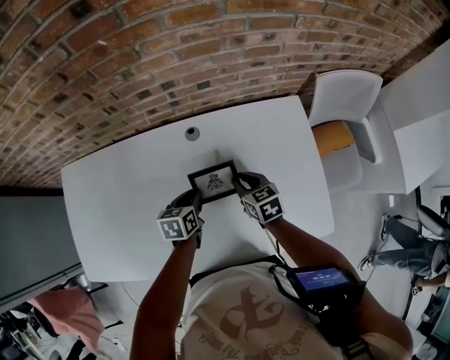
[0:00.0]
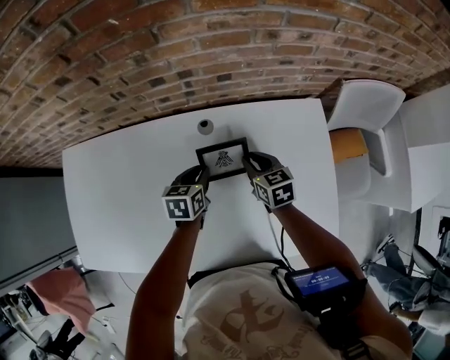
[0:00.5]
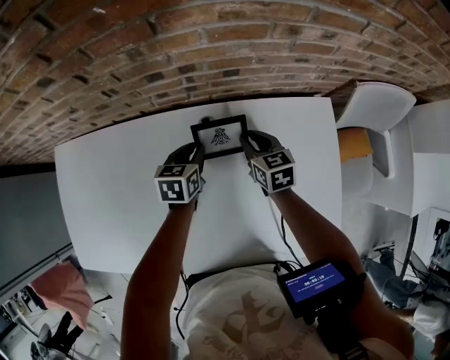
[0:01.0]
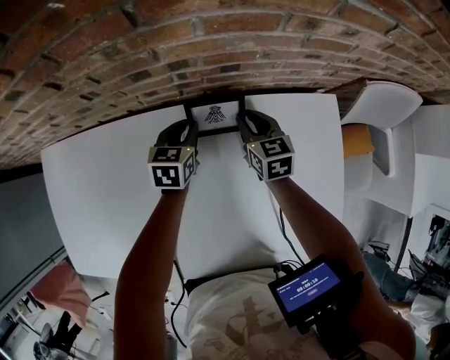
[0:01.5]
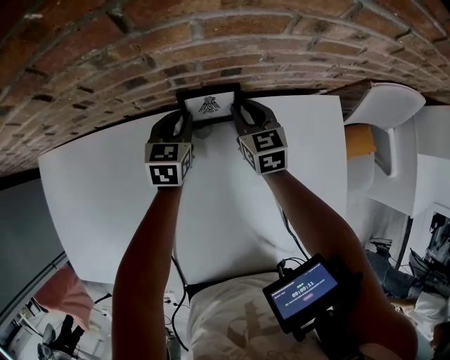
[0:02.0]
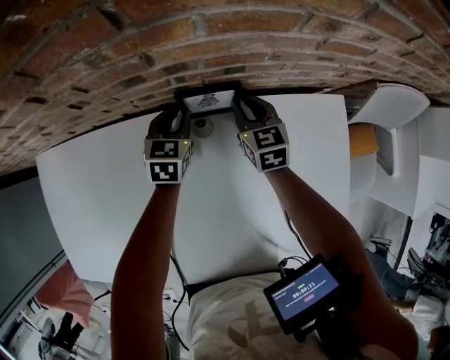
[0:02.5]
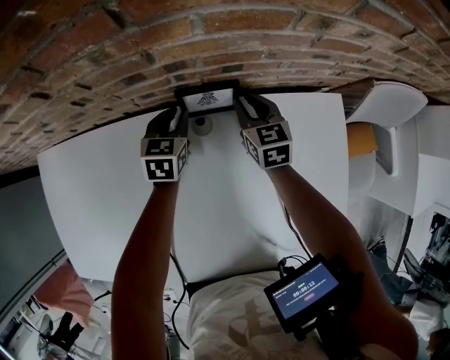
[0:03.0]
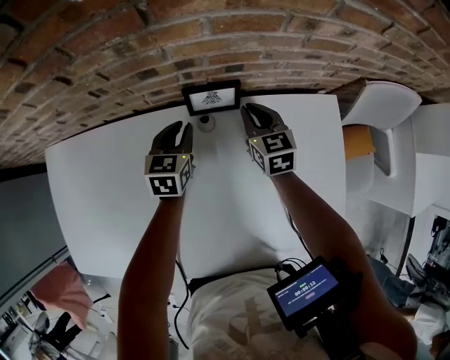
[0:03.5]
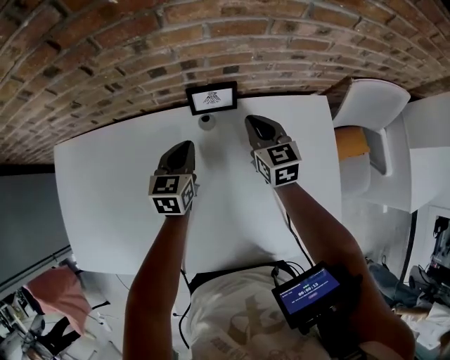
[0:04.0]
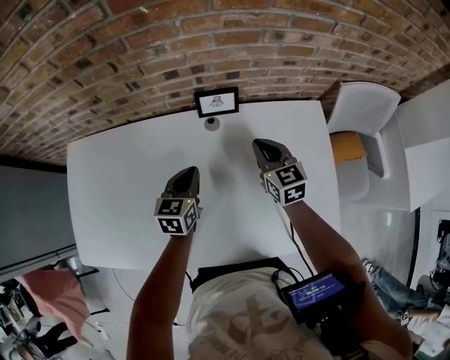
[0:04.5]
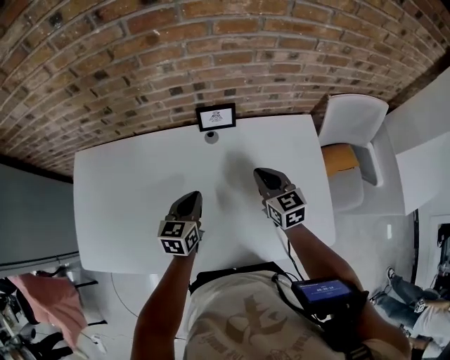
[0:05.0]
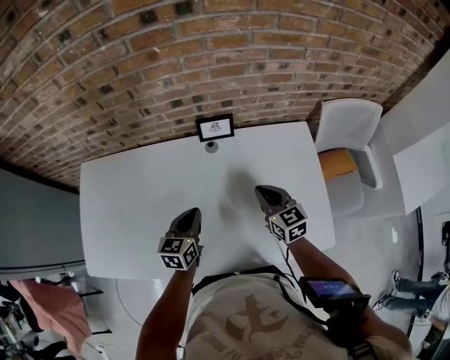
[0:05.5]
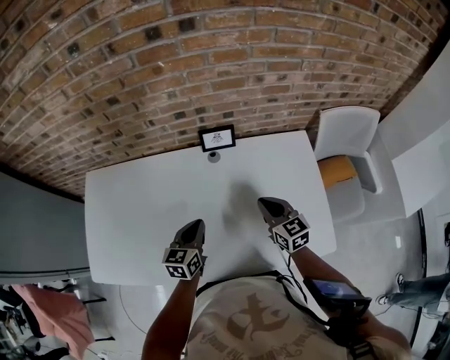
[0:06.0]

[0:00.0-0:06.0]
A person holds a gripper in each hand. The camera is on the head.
0:00.0 to 0:02.0: Both grippers travel together forward, some 25 cm. The left gripper turns by roughly 20 degrees.
0:02.0 to 0:04.0: Both grippers move backward and upward, about 15 cm.
0:04.0 to 0:06.0: Both grippers move backward, roughly 20 cm.

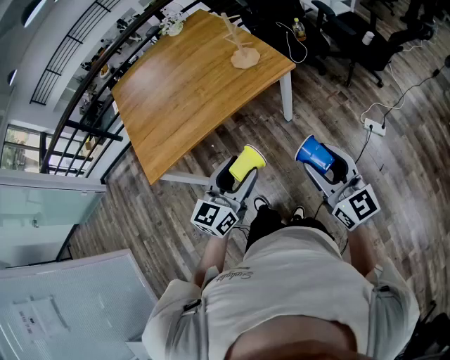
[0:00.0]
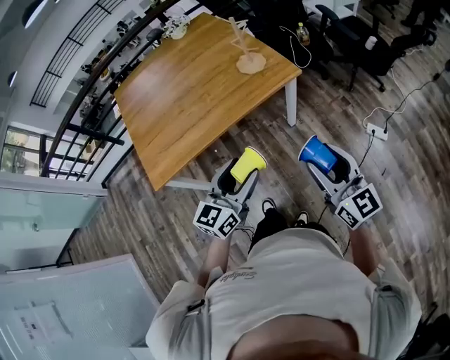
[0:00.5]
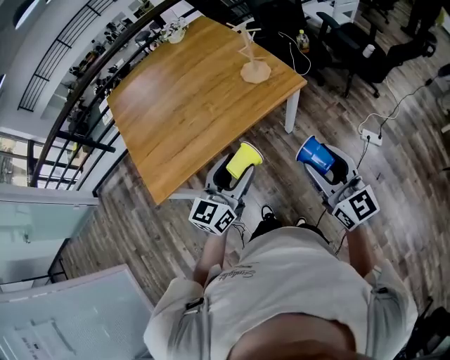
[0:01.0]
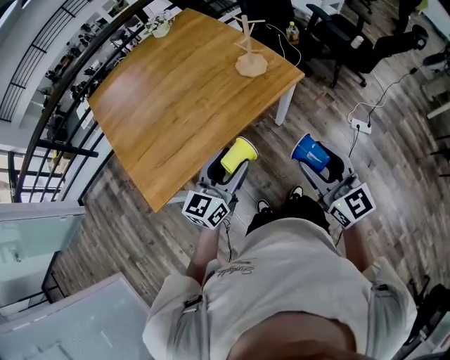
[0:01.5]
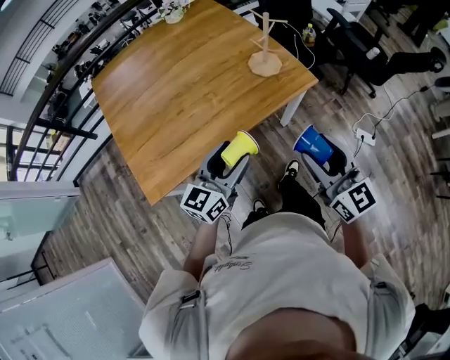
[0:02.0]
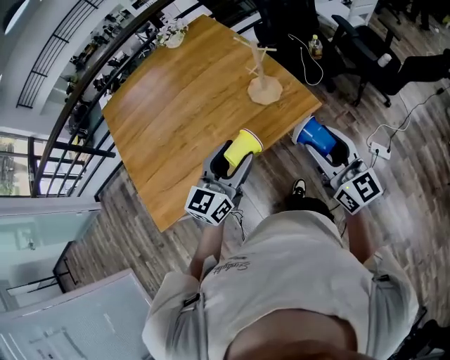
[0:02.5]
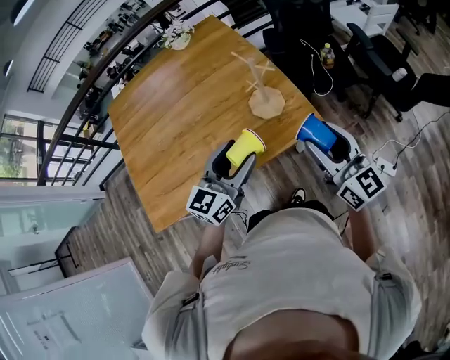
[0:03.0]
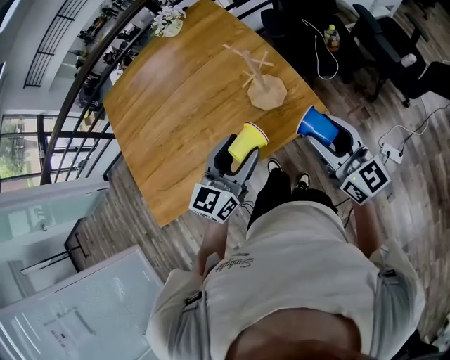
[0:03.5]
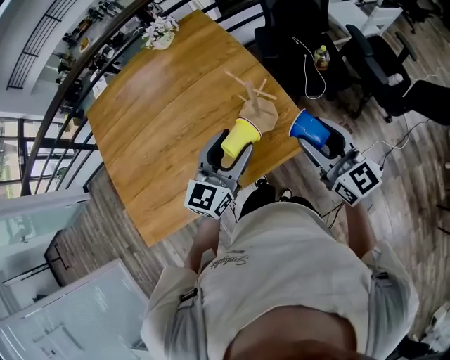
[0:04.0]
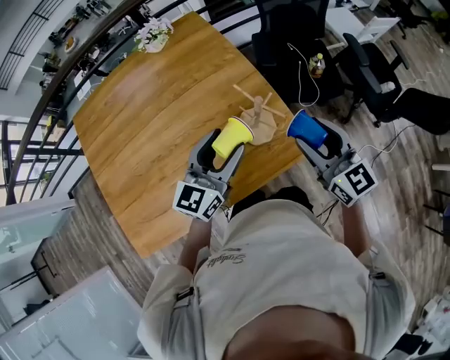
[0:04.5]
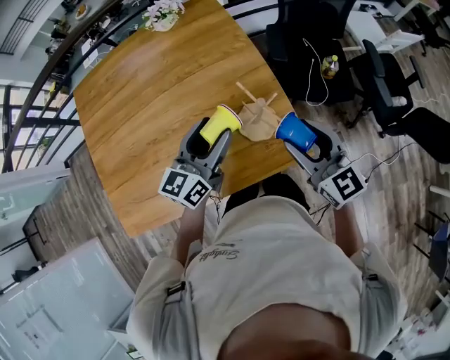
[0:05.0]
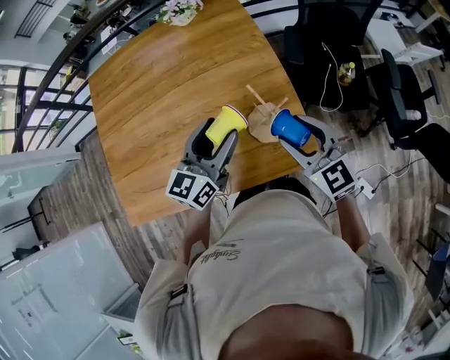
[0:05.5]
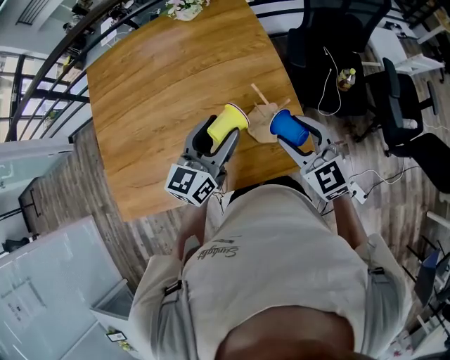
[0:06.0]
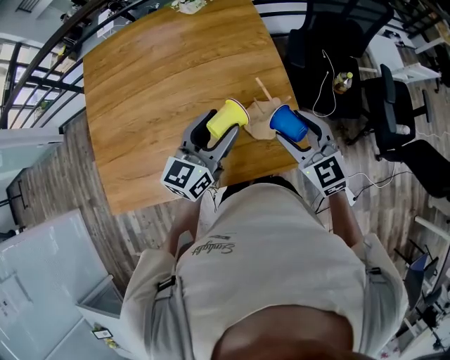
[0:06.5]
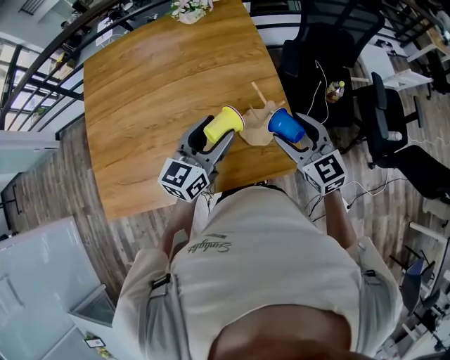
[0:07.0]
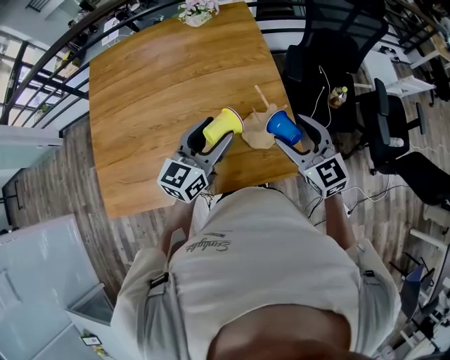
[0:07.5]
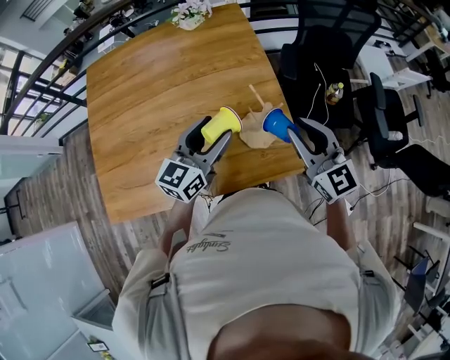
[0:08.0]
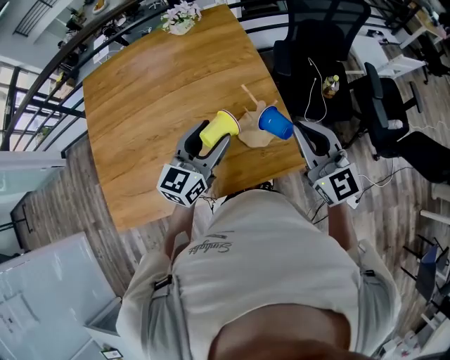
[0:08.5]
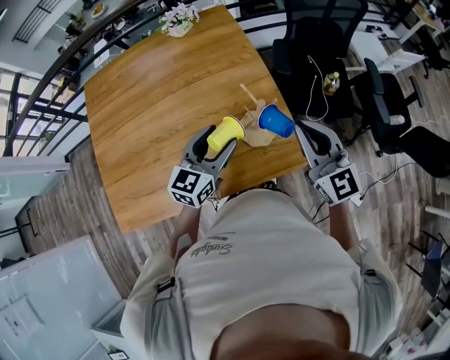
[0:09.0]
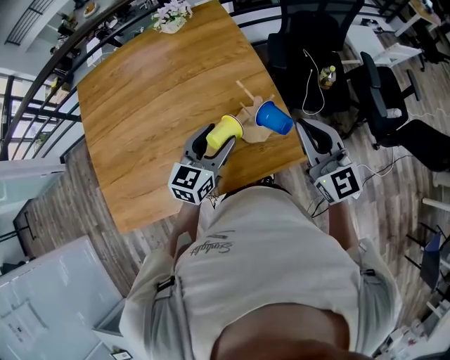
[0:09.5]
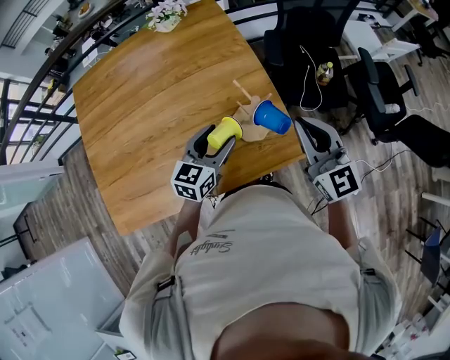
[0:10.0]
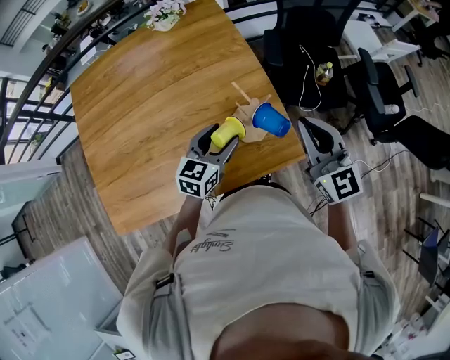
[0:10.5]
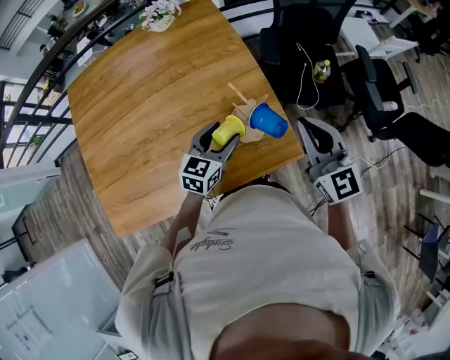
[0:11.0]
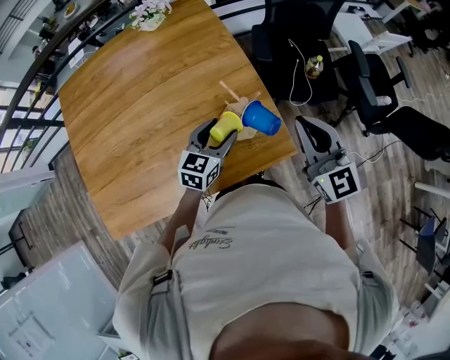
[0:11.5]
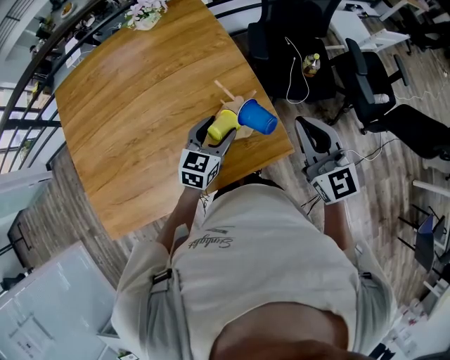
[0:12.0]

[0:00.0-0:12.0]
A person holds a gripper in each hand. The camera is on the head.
0:00.0 to 0:02.0: Both grippers travel together forward and to the left, approximately 25 cm.
0:02.0 to 0:04.0: The grippers both shift forward and to the right by approximately 35 cm.
0:04.0 to 0:06.0: The left gripper travels forward by about 10 cm. The right gripper is displaced forward, downward and to the left by about 15 cm, and turns by roughly 30 degrees.
0:06.0 to 0:08.0: The right gripper shifts approximately 5 cm upward, and closes its fingers.
0:08.0 to 0:10.0: The left gripper shifts roughly 10 cm downward.
0:10.0 to 0:12.0: The left gripper shifts by roughly 5 cm.

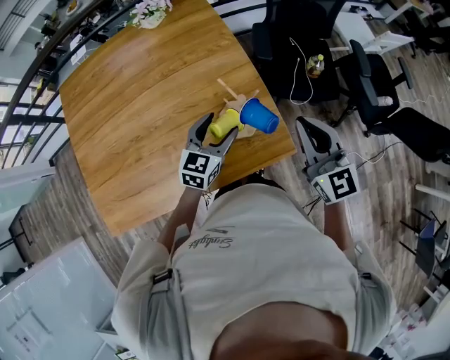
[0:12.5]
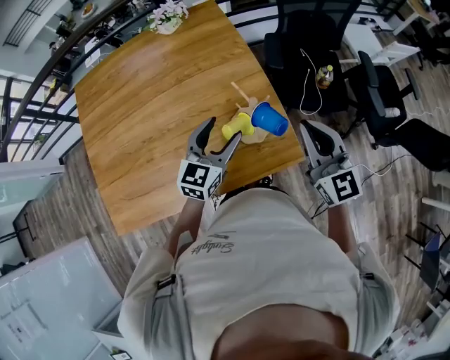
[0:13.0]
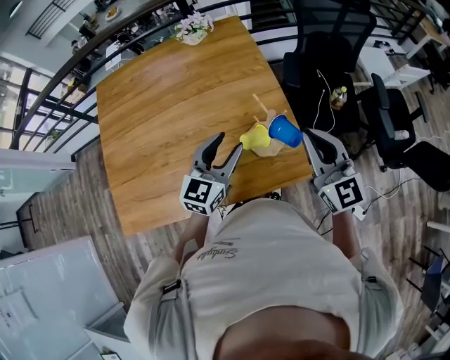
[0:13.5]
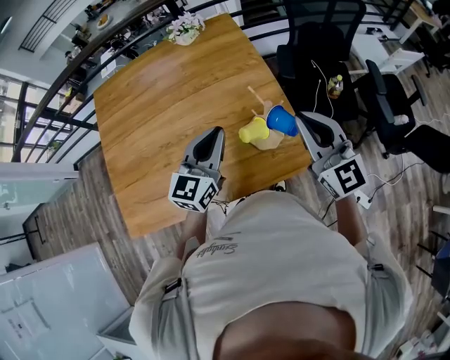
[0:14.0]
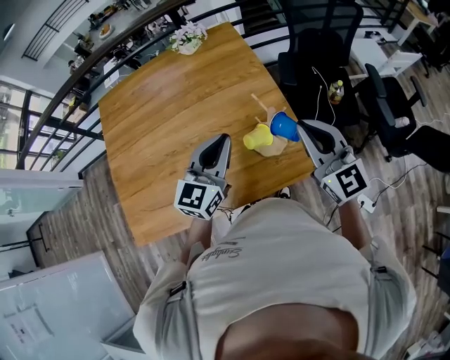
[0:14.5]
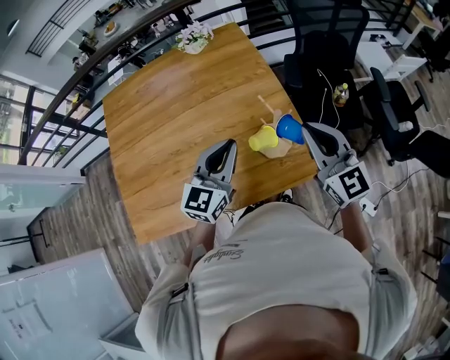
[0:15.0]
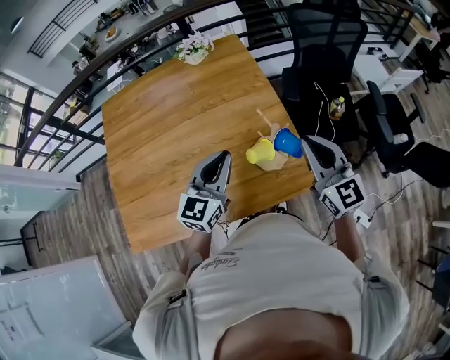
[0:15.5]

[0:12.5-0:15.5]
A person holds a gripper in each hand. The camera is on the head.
0:12.5 to 0:14.0: The right gripper goes roughly 10 cm to the left and upward; the left gripper heads upward and to the left, covering about 15 cm, and closes up.
0:14.0 to 0:15.5: The grippers move only a little.

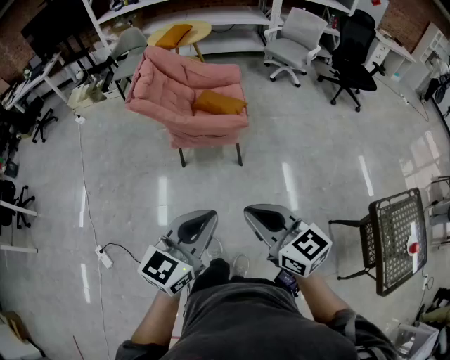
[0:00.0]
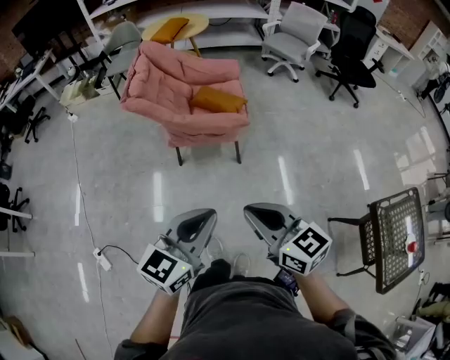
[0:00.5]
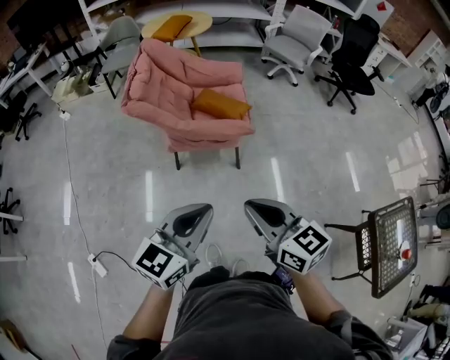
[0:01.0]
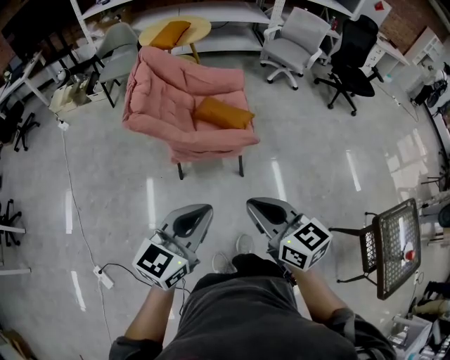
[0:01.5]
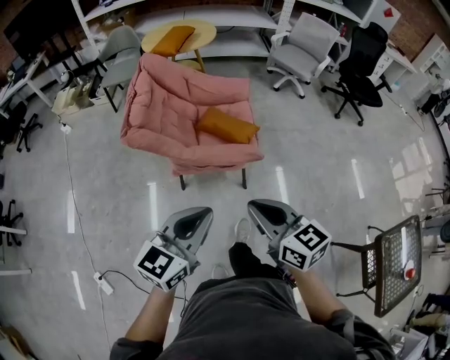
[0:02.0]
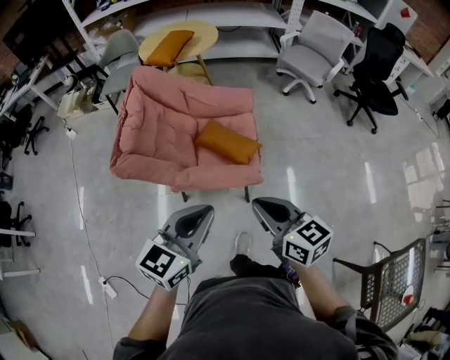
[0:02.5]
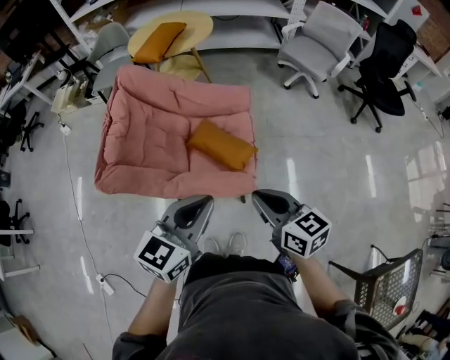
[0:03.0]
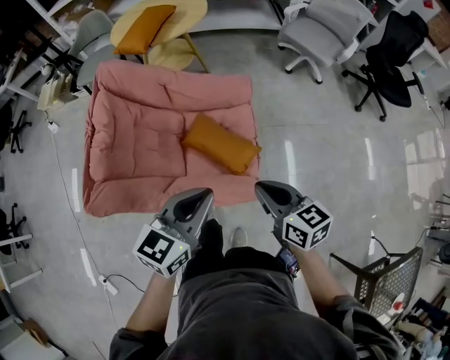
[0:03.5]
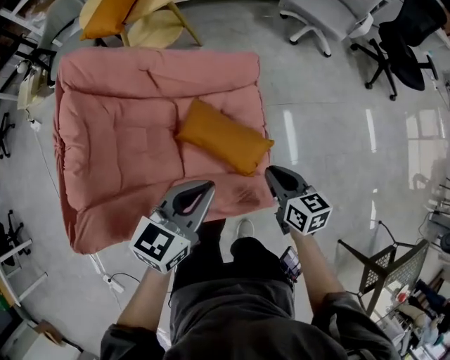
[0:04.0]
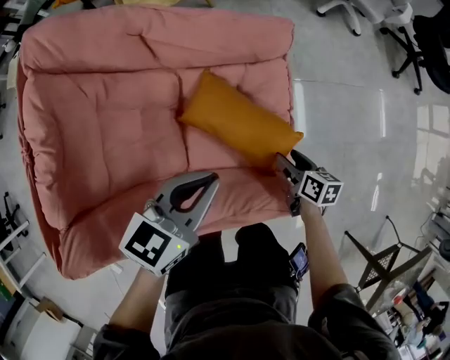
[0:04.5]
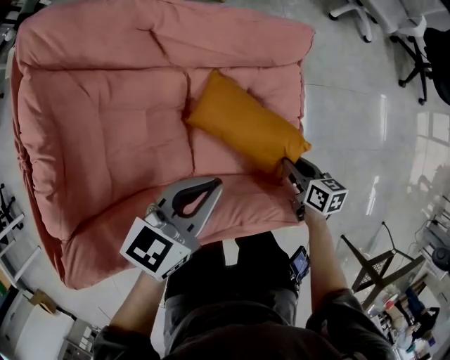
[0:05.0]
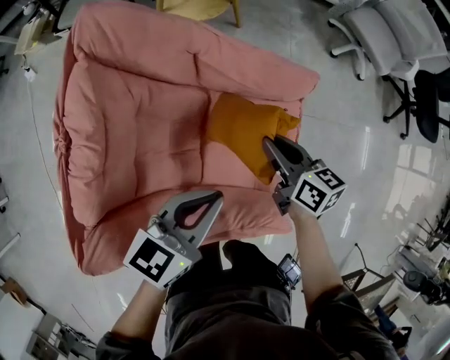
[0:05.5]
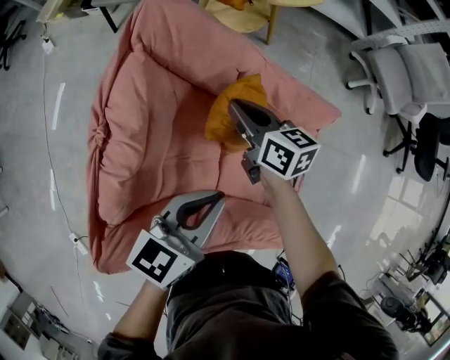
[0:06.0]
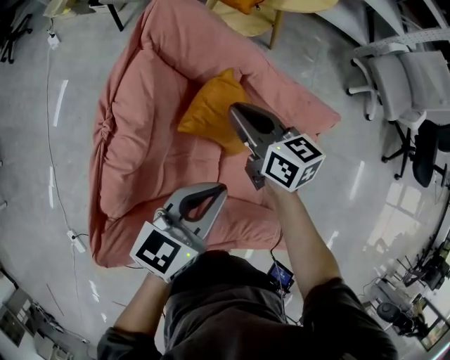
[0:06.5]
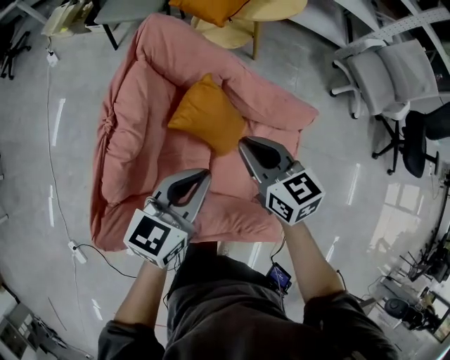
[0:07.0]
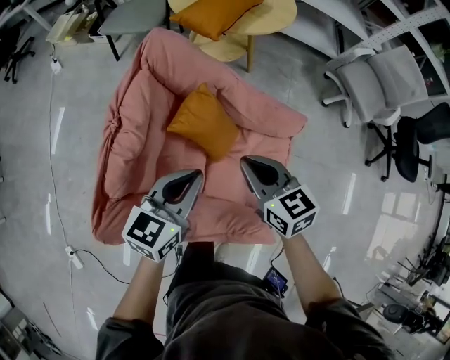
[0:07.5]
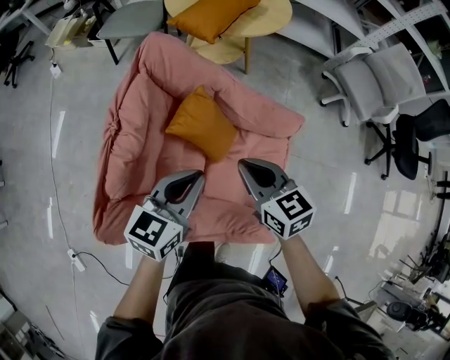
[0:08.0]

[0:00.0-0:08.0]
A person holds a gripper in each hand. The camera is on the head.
0:00.0 to 0:02.0: The left gripper moves forward and to the left, roughly 30 cm, while the right gripper heads forward, covering approximately 30 cm.
0:02.0 to 0:04.0: The two grippers travel together, forward, roughly 50 cm. Both grippers travel together downward, approximately 25 cm. The right gripper turns by roughly 30 degrees.
0:04.0 to 0:06.0: The left gripper heads to the left and forward, covering about 25 cm, and changes its angle by approximately 20 degrees, while the right gripper is displaced to the left and forward by some 50 cm, rotates approximately 30 degrees, and opens, then closes once more.
0:06.0 to 0:08.0: The right gripper shifts roughly 25 cm backward, upward and to the right, and changes its angle by some 20 degrees. Meanwhile the left gripper goes roughly 5 cm upward.
